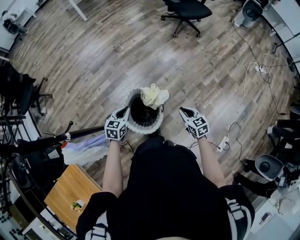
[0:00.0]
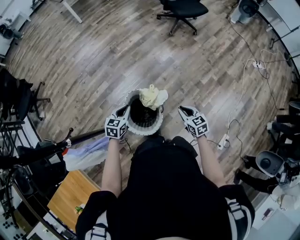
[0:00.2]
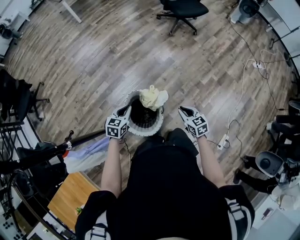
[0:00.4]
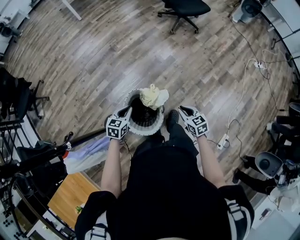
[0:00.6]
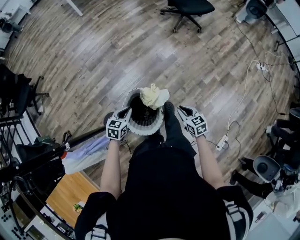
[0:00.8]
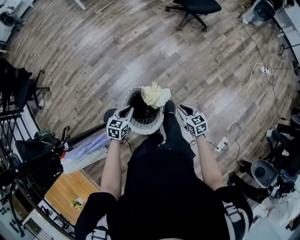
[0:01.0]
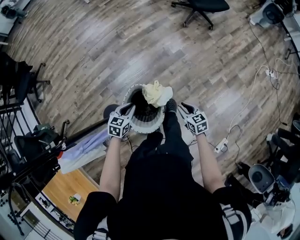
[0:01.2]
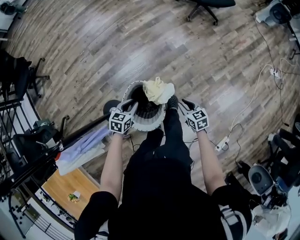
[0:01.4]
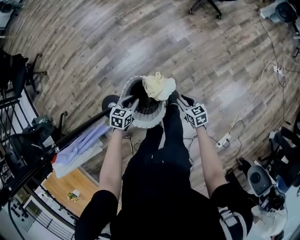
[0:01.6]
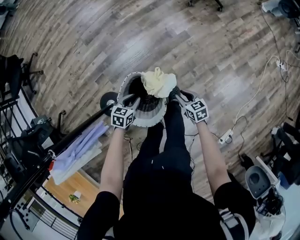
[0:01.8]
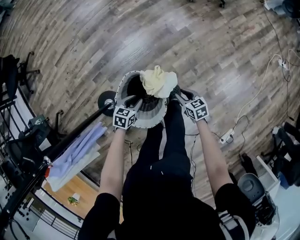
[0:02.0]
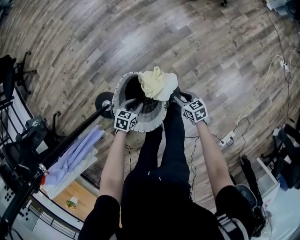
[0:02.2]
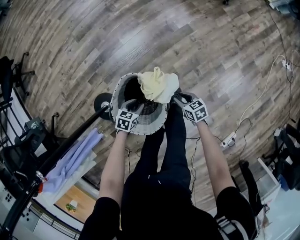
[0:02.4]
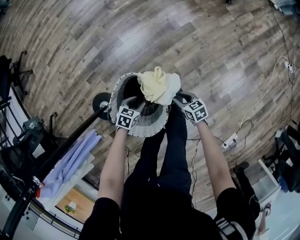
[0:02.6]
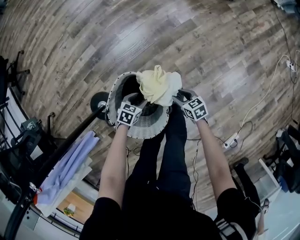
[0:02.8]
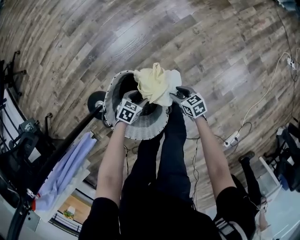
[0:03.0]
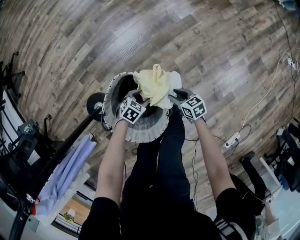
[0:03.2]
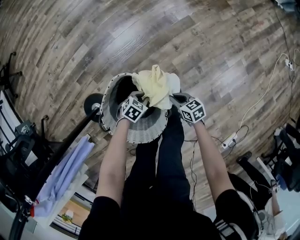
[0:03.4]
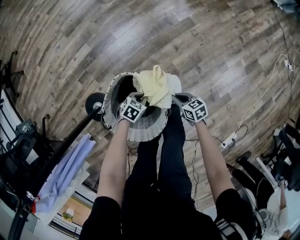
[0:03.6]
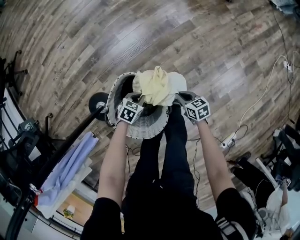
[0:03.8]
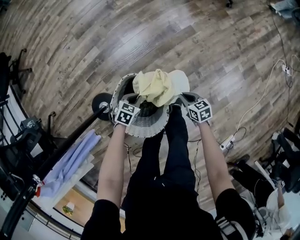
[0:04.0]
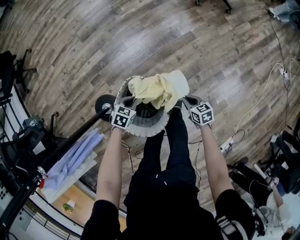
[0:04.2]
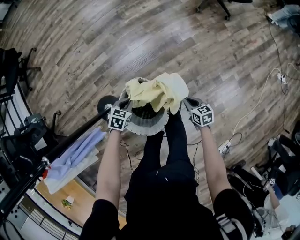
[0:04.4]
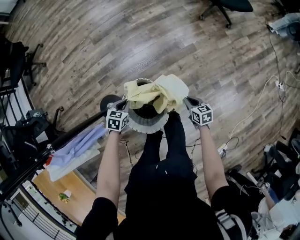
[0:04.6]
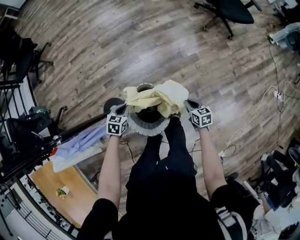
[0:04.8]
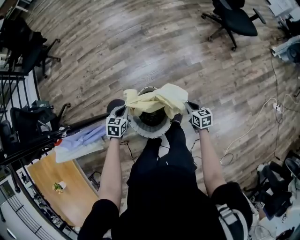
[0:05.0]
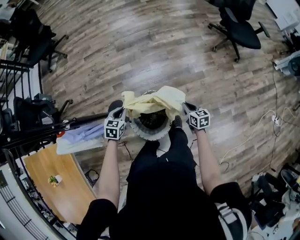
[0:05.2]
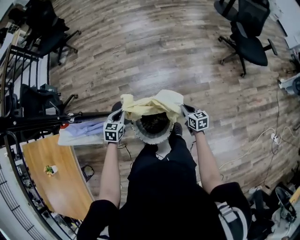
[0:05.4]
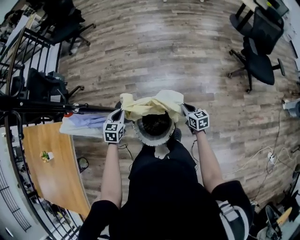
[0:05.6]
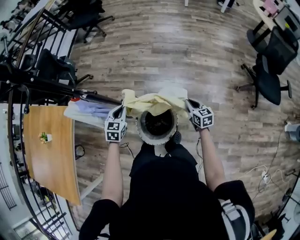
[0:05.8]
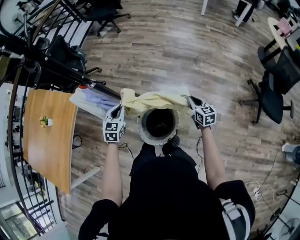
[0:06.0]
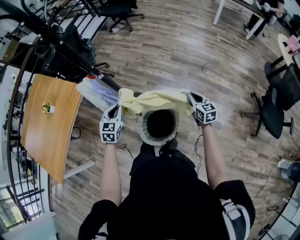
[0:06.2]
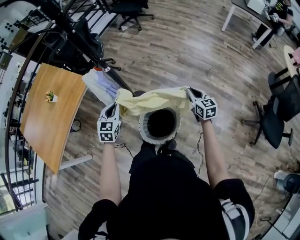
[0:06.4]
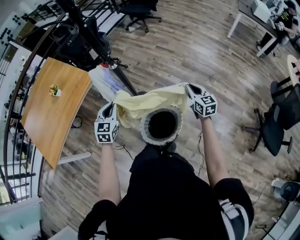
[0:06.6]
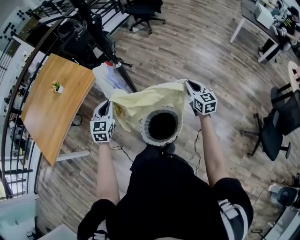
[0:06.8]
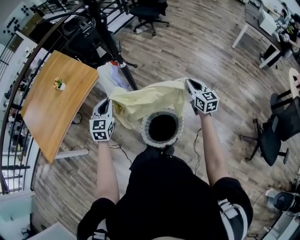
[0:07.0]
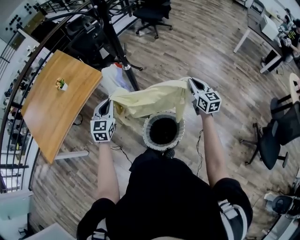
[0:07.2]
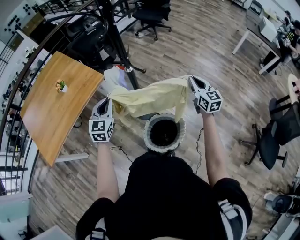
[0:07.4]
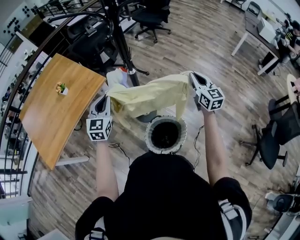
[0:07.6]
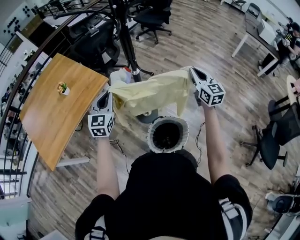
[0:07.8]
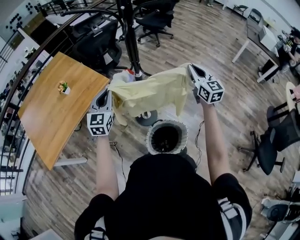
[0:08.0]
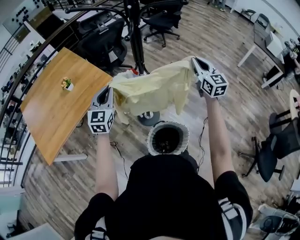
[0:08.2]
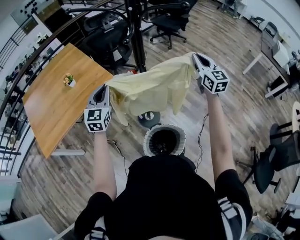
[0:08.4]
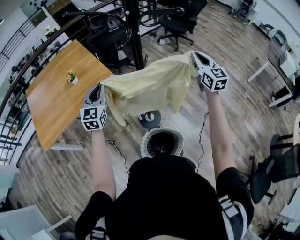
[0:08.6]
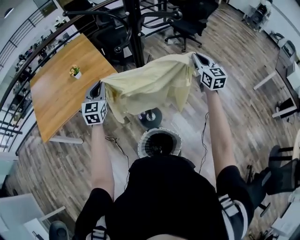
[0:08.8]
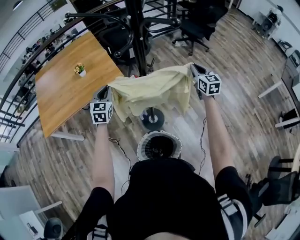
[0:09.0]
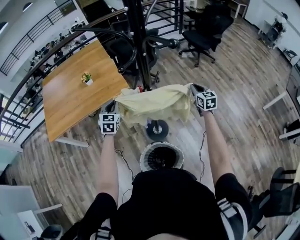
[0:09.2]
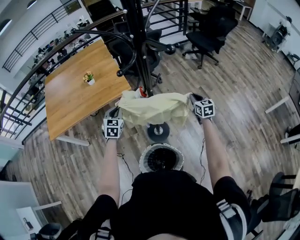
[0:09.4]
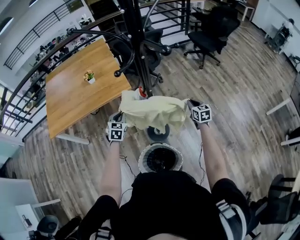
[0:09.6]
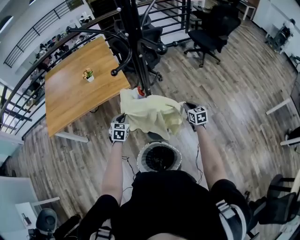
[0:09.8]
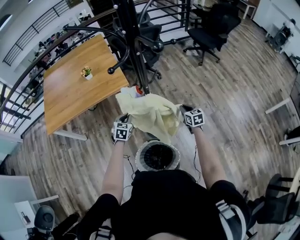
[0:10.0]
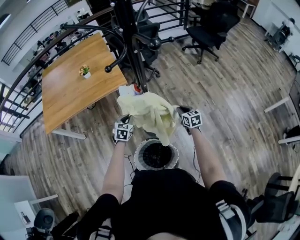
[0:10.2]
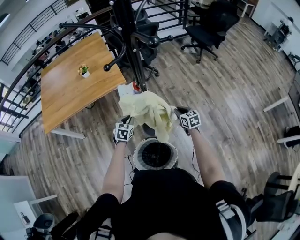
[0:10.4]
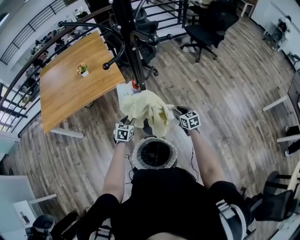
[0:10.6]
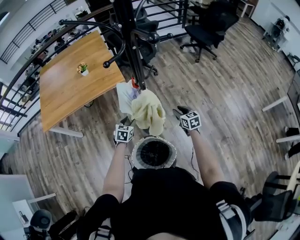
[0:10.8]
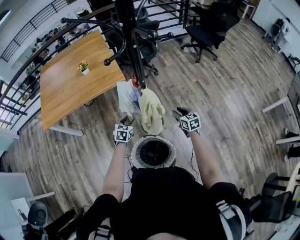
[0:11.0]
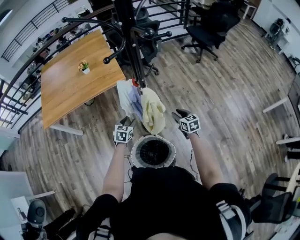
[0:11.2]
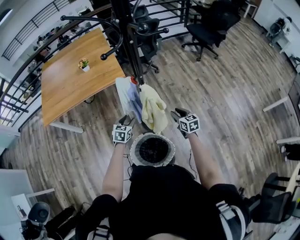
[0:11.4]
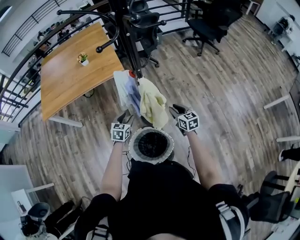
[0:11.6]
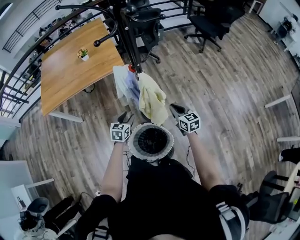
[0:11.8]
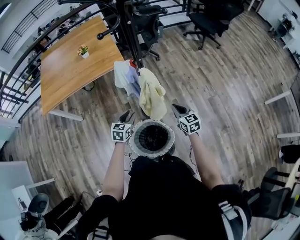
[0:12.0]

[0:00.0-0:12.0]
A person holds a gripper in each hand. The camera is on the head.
0:00.0 to 0:01.6: The grippers both shift downward and forward by about 20 cm.
0:01.6 to 0:03.0: The two grippers go approximately 30 cm downward. The left gripper turns by approximately 20 degrees, and opens.
0:03.0 to 0:04.4: Both grippers travel together upward, roughly 20 cm. The right gripper closes up. Meanwhile the left gripper closes up.
0:04.4 to 0:06.0: The two grippers go approximately 30 cm upward. The right gripper swivels roughly 50 degrees, while the left gripper rotates approximately 60 degrees.
0:06.0 to 0:07.6: The left gripper moves to the left and upward, about 25 cm, and changes its angle by some 30 degrees. The right gripper is displaced upward, forward and to the left by approximately 30 cm, and turns by some 30 degrees.
0:07.6 to 0:09.0: The left gripper goes approximately 10 cm forward, and swivels roughly 30 degrees; the right gripper shifts about 25 cm forward, and changes its angle by about 20 degrees.
0:09.0 to 0:10.4: The left gripper moves downward, backward and to the right, approximately 25 cm, and swivels some 30 degrees; the right gripper heads downward, covering some 25 cm, and rotates about 30 degrees.
0:10.4 to 0:12.0: Both grippers move backward, about 10 cm. The left gripper opens its fingers.

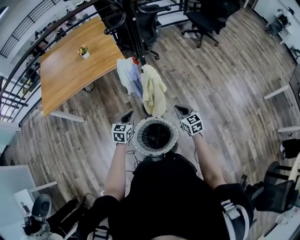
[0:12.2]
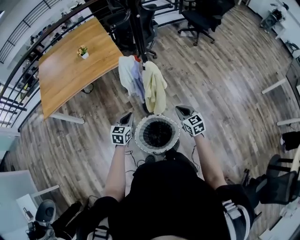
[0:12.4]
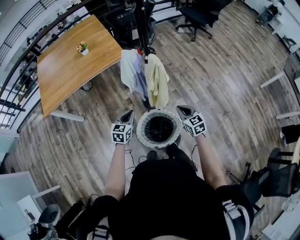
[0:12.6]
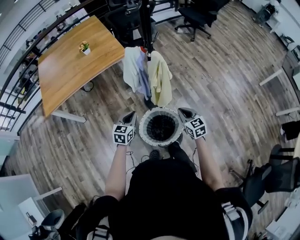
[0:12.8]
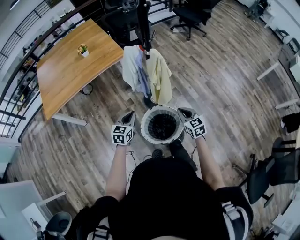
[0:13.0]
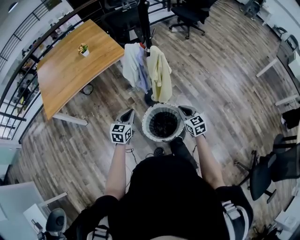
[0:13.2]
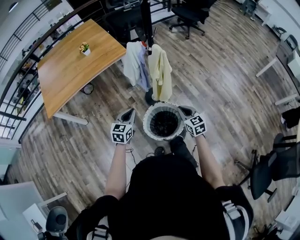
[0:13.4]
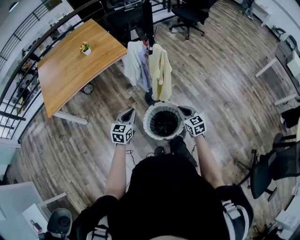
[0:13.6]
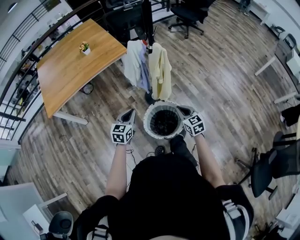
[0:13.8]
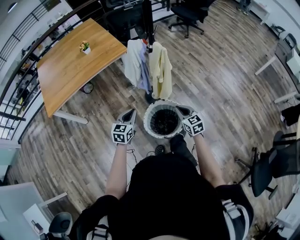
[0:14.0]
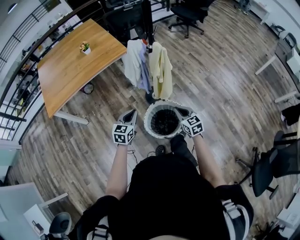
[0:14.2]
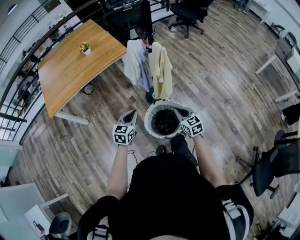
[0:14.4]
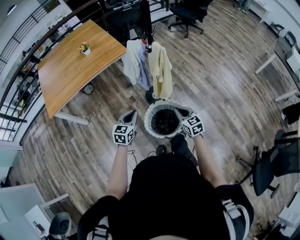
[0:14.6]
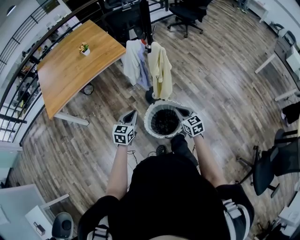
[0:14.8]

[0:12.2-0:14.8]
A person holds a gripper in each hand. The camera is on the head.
0:12.2 to 0:13.4: Both grippers travel together backward and to the left, approximately 15 cm.
0:13.4 to 0:14.8: The grippers stay close to where they were, moving slightly.

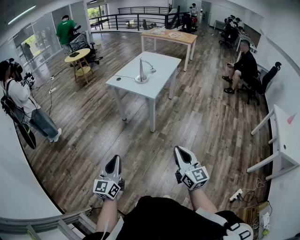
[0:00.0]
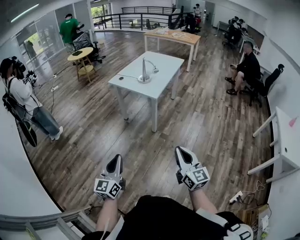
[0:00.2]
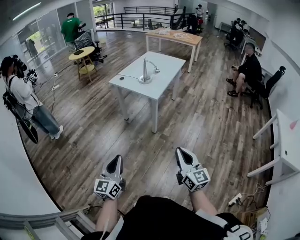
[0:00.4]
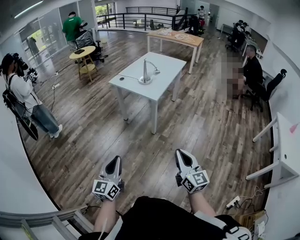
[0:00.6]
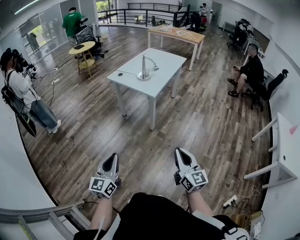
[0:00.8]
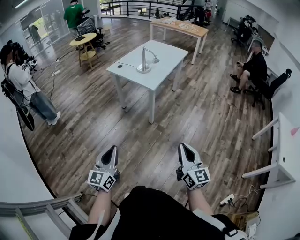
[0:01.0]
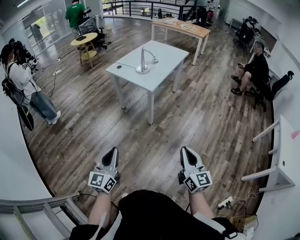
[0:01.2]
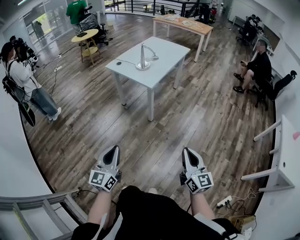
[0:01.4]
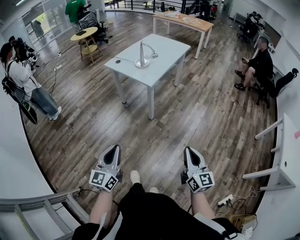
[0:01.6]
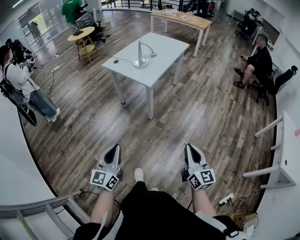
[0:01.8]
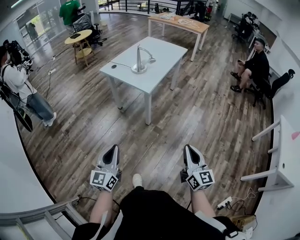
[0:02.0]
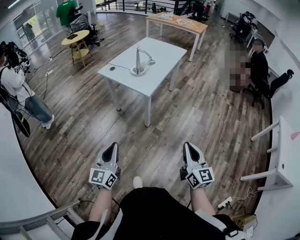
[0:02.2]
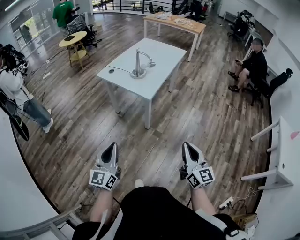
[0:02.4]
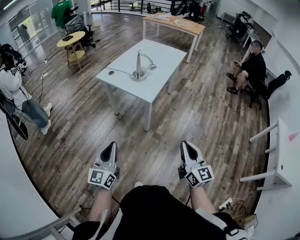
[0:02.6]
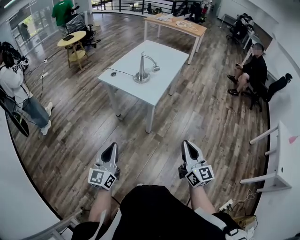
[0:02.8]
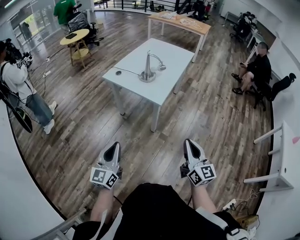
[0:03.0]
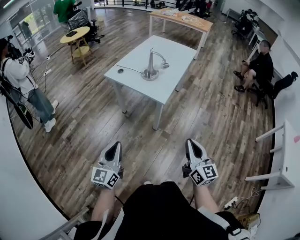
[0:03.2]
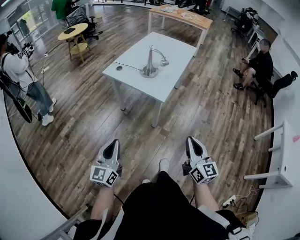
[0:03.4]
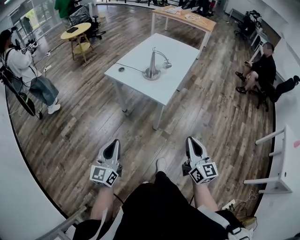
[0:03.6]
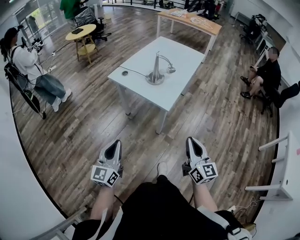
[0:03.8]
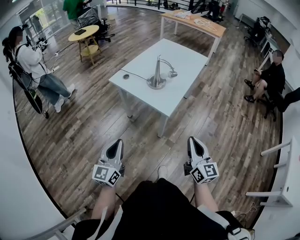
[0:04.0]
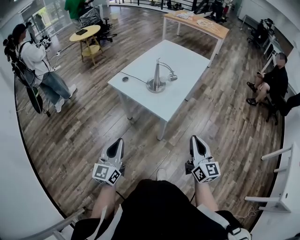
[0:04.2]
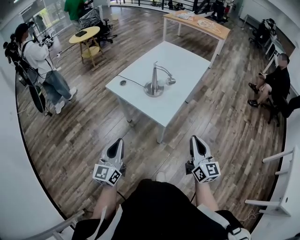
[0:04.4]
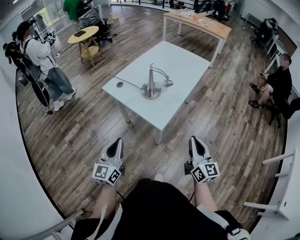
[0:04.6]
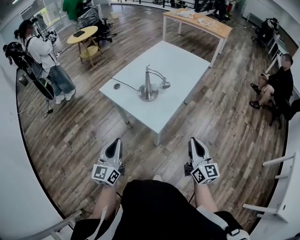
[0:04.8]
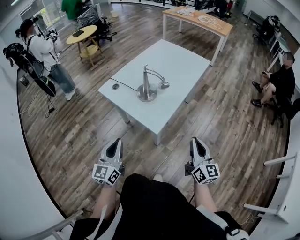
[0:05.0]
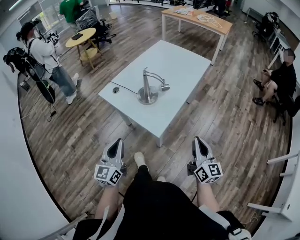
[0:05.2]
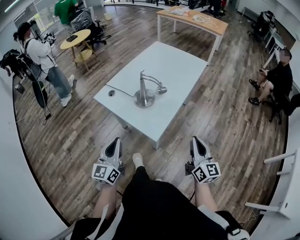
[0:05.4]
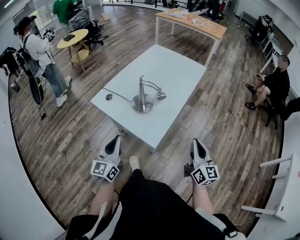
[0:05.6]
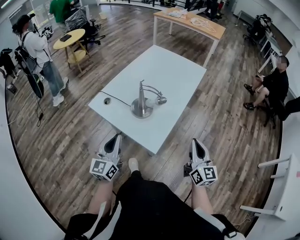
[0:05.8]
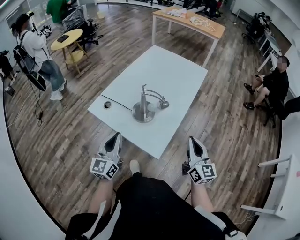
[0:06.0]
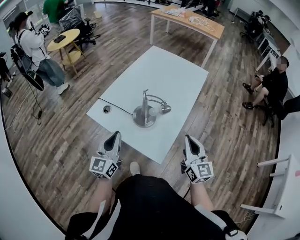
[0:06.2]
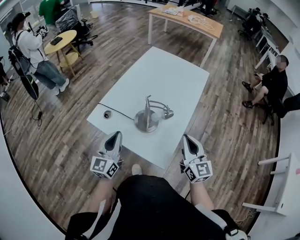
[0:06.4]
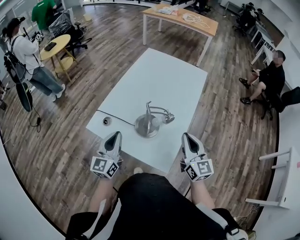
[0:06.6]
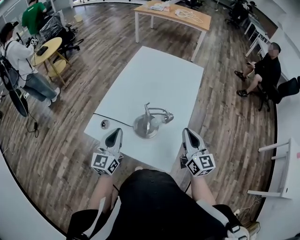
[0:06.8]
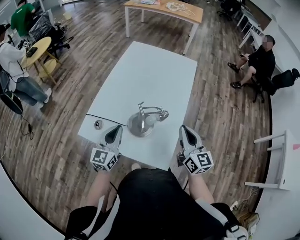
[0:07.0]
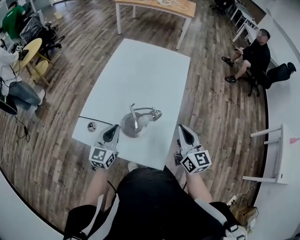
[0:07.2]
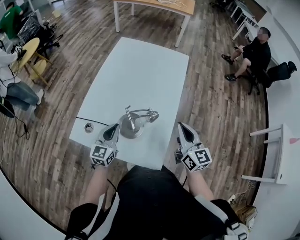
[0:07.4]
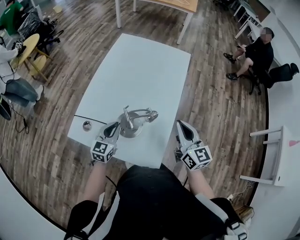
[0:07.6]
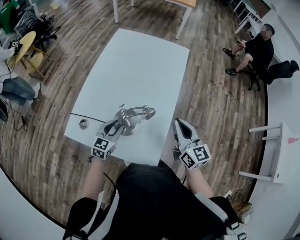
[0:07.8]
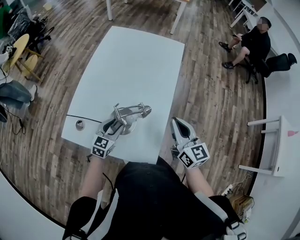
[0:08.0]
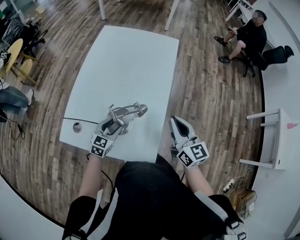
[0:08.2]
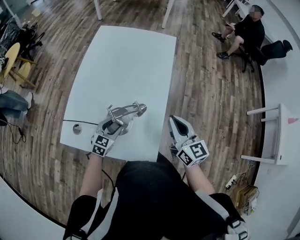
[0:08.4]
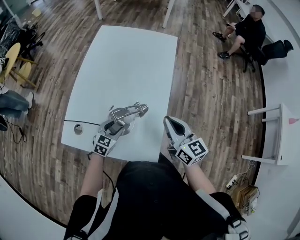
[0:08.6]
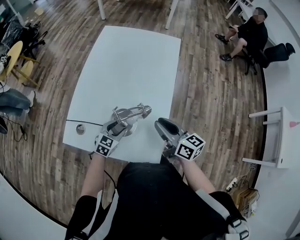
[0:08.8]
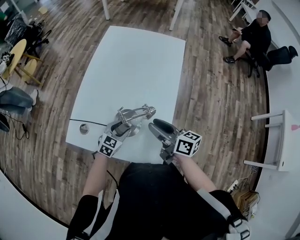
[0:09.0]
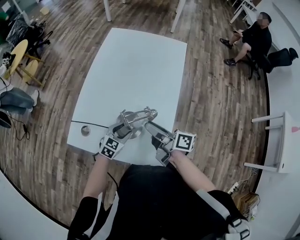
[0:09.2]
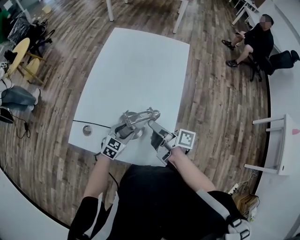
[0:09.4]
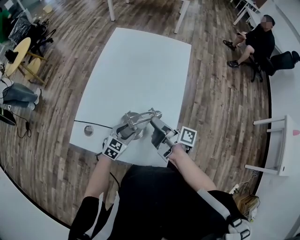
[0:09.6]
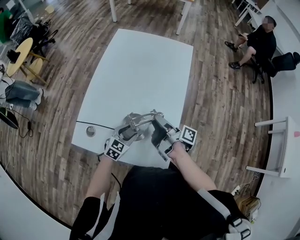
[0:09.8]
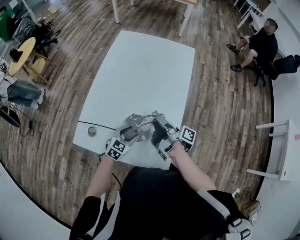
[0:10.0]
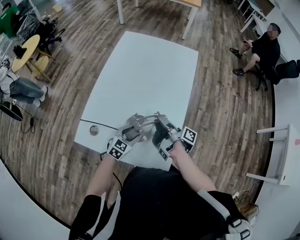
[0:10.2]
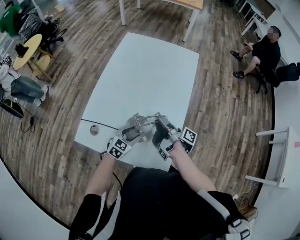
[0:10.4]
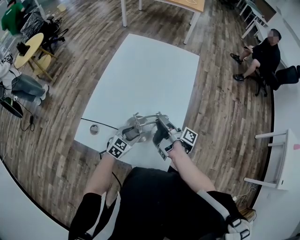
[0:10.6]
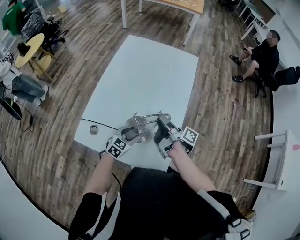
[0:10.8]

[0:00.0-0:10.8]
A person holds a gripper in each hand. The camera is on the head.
0:00.0 to 0:01.6: Both grippers move to the right, some 15 cm.
0:01.6 to 0:03.0: The two grippers go some 20 cm forward and to the left.
0:03.0 to 0:04.6: Both grippers travel together forward, about 20 cm.
0:04.6 to 0:06.2: The two grippers go about 20 cm forward.
0:06.2 to 0:07.8: The left gripper travels downward and forward by some 25 cm, turns by approximately 40 degrees, and opens. The right gripper travels forward by some 10 cm.
0:07.8 to 0:09.2: The left gripper heads downward, covering roughly 5 cm, and opens; the right gripper is displaced to the left and downward by some 15 cm, rolls clockwise, seen from behind, by roughly 50 degrees, and opens its fingers.
0:09.2 to 0:10.8: The right gripper moves forward, approximately 5 cm, and changes its angle by roughly 30 degrees.
